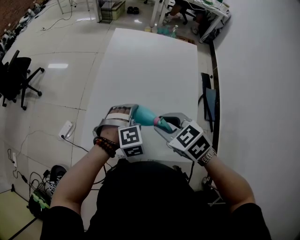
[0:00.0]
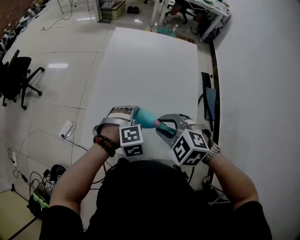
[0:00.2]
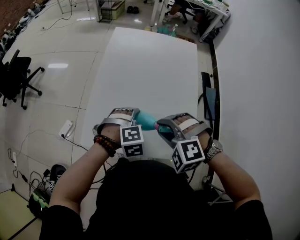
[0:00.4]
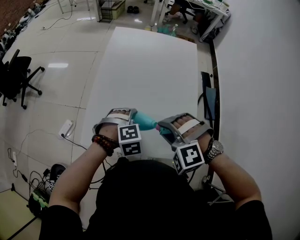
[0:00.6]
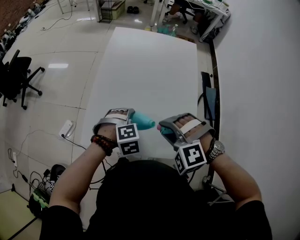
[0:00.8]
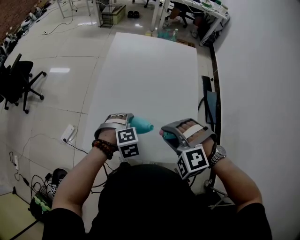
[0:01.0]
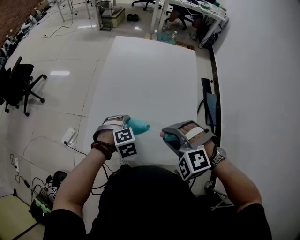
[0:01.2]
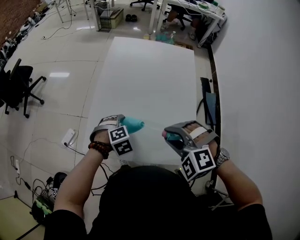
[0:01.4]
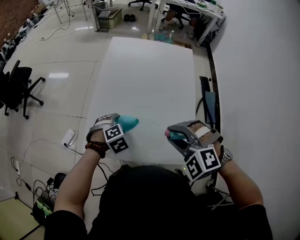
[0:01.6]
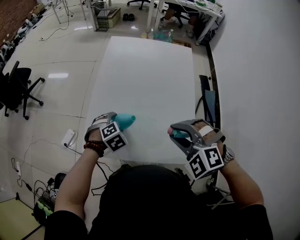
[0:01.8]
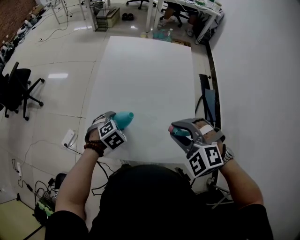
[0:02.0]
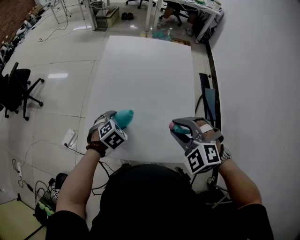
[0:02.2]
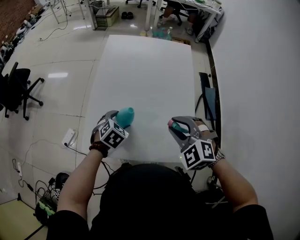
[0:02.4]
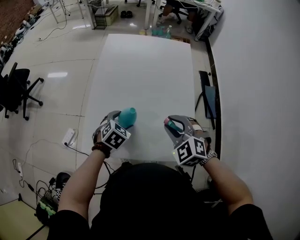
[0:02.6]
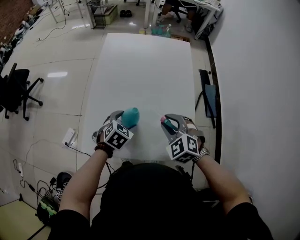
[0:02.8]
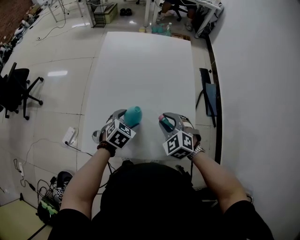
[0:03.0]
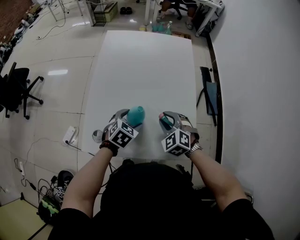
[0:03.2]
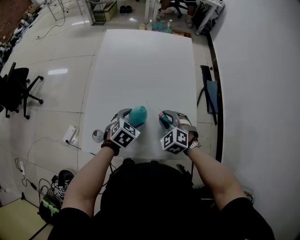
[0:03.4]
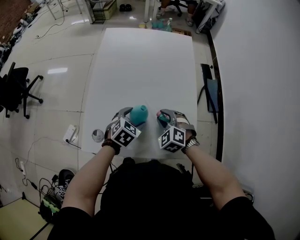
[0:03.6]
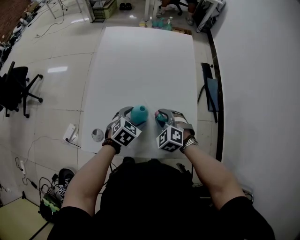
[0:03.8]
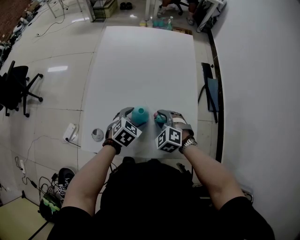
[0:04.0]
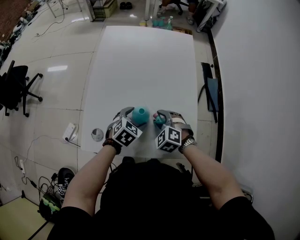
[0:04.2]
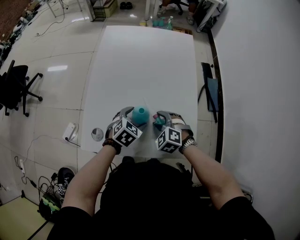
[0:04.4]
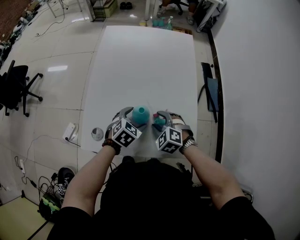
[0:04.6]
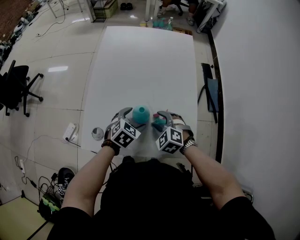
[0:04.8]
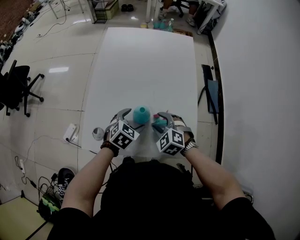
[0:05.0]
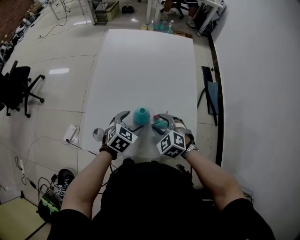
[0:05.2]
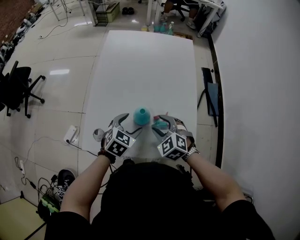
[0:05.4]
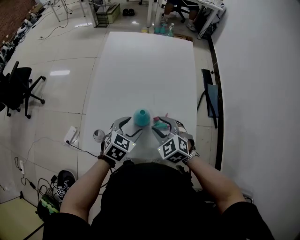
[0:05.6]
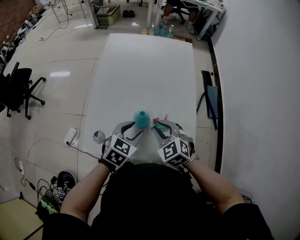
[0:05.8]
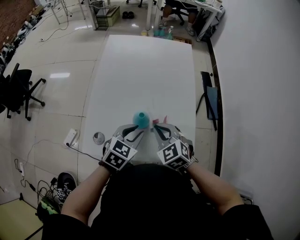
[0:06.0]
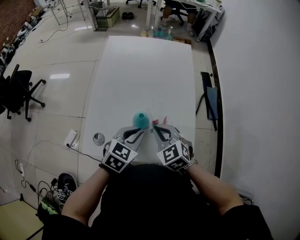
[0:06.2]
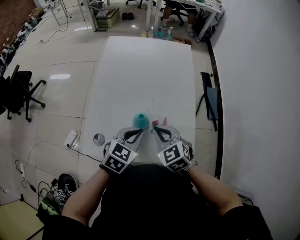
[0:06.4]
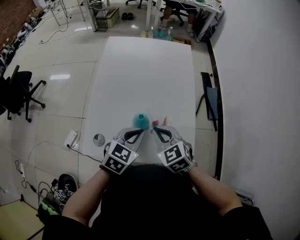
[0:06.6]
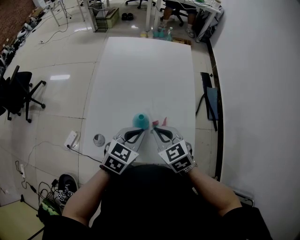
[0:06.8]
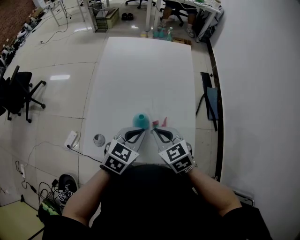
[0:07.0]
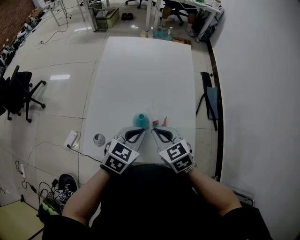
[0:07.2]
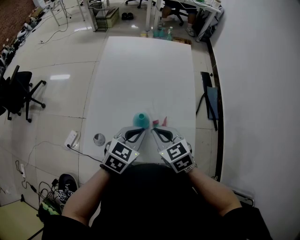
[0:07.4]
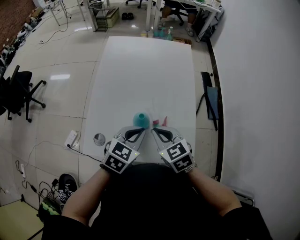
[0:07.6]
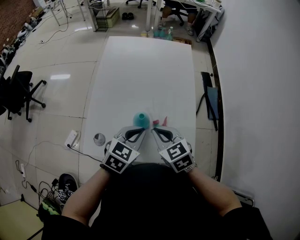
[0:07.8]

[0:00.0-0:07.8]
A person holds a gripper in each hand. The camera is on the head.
0.0 to 1.6 s: The left gripper travels to the left and downward by roughly 10 cm. The right gripper moves approximately 5 cm, and rotates around the line of its fingers by roughly 50 degrees, counterclockwise from behind.
1.6 to 3.2 s: The left gripper heads to the right, covering roughly 5 cm, and swivels some 30 degrees, while the right gripper travels downward and forward by roughly 15 cm, and swivels approximately 30 degrees.
3.2 to 4.6 s: The right gripper moves downward, roughly 5 cm, and opens.
4.6 to 6.2 s: Both grippers move upward, roughly 10 cm. The right gripper rotates about 20 degrees, and closes up, while the left gripper closes its fingers.
6.2 to 7.8 s: The grippers make only small movements.

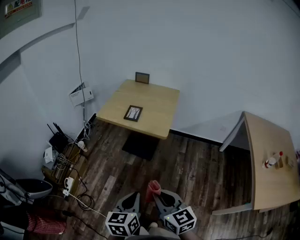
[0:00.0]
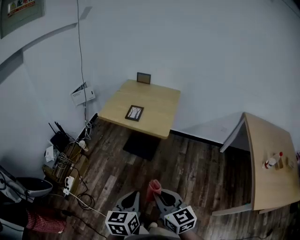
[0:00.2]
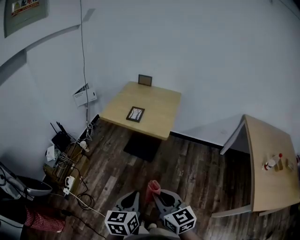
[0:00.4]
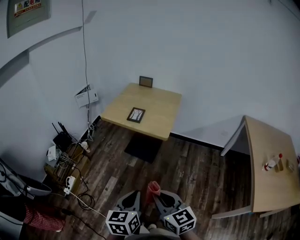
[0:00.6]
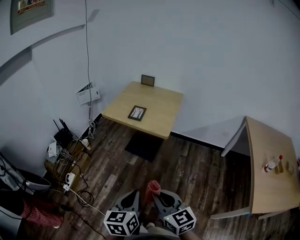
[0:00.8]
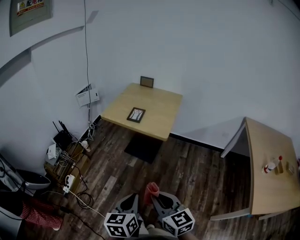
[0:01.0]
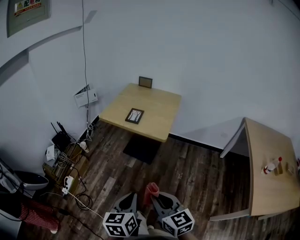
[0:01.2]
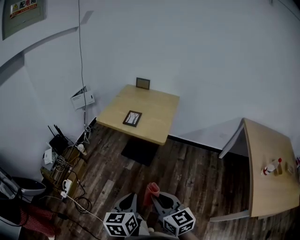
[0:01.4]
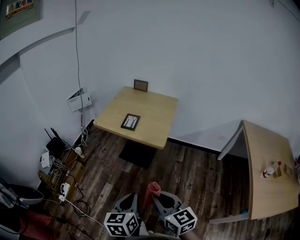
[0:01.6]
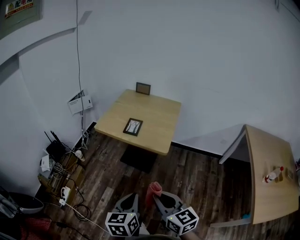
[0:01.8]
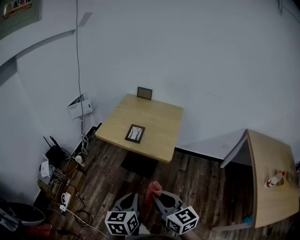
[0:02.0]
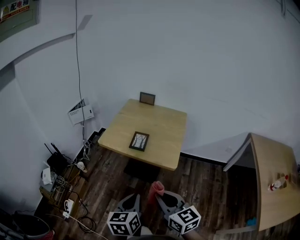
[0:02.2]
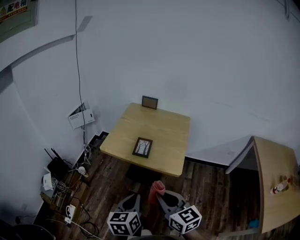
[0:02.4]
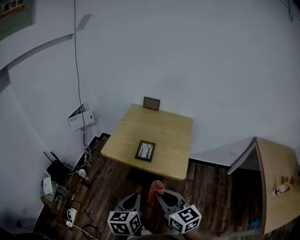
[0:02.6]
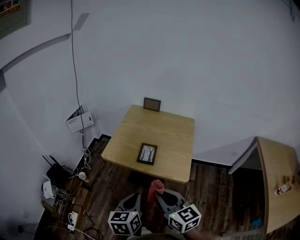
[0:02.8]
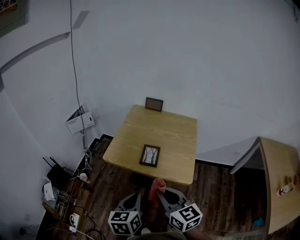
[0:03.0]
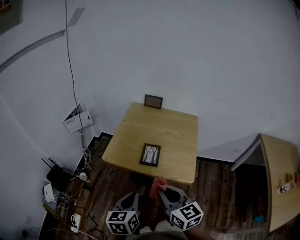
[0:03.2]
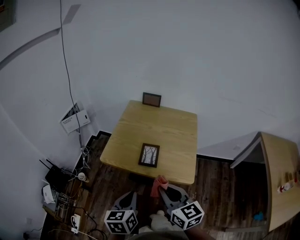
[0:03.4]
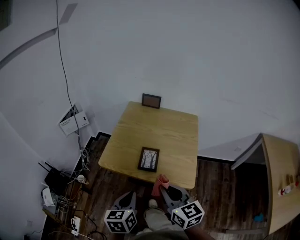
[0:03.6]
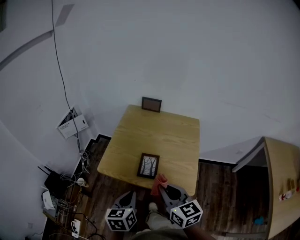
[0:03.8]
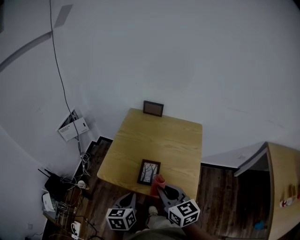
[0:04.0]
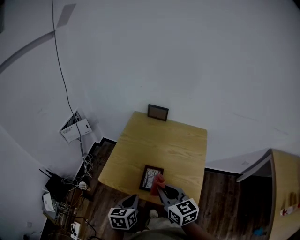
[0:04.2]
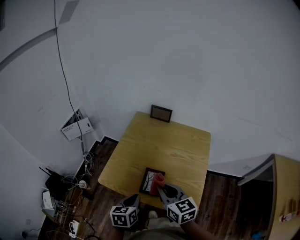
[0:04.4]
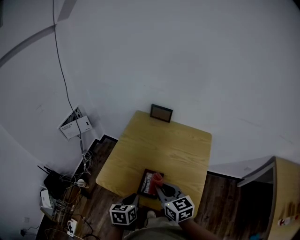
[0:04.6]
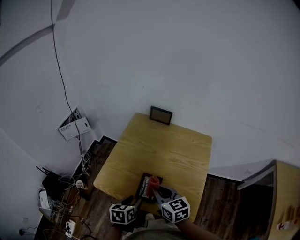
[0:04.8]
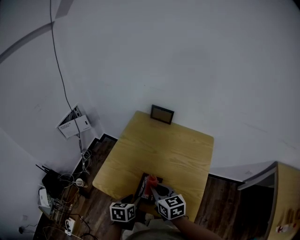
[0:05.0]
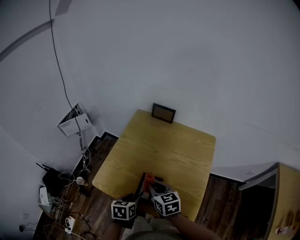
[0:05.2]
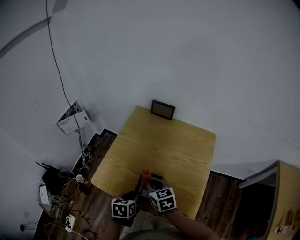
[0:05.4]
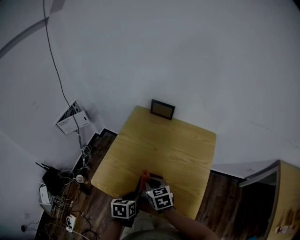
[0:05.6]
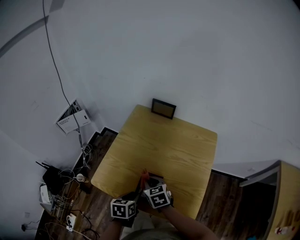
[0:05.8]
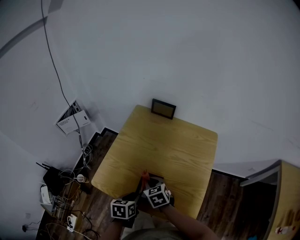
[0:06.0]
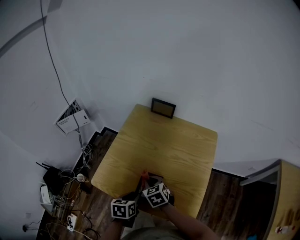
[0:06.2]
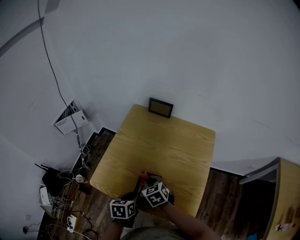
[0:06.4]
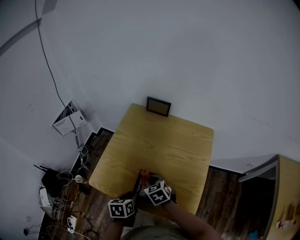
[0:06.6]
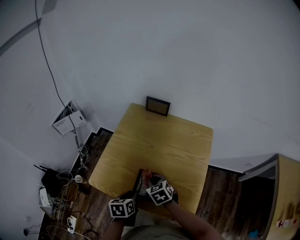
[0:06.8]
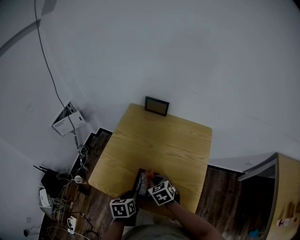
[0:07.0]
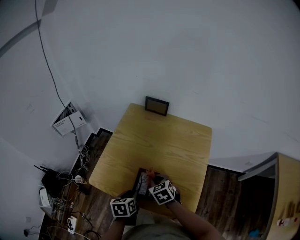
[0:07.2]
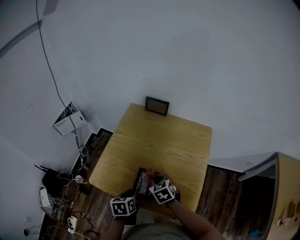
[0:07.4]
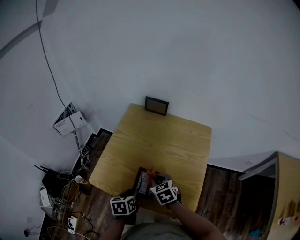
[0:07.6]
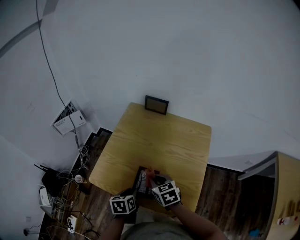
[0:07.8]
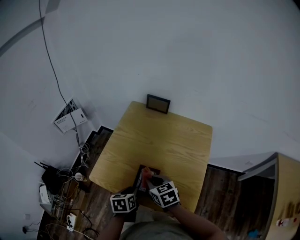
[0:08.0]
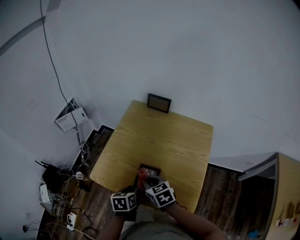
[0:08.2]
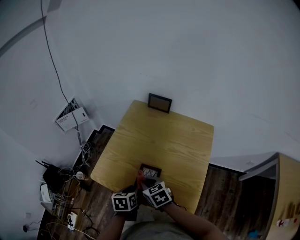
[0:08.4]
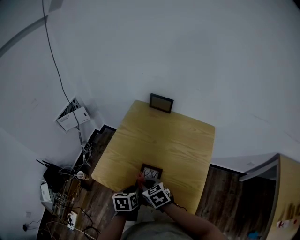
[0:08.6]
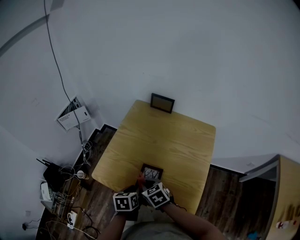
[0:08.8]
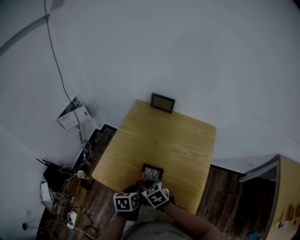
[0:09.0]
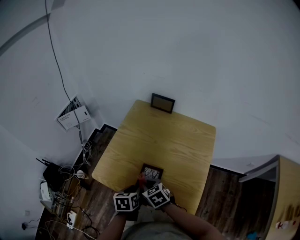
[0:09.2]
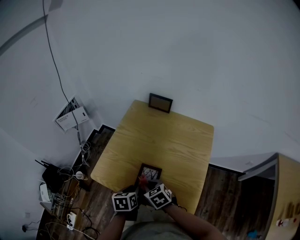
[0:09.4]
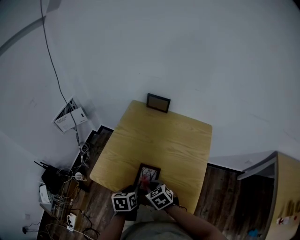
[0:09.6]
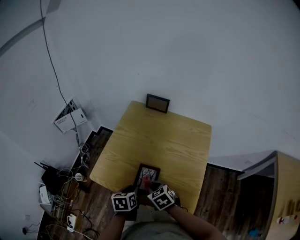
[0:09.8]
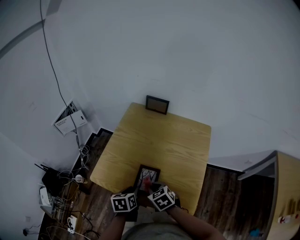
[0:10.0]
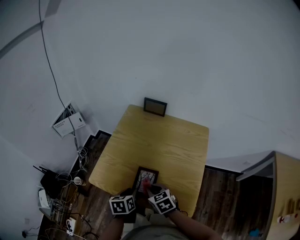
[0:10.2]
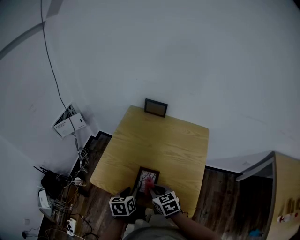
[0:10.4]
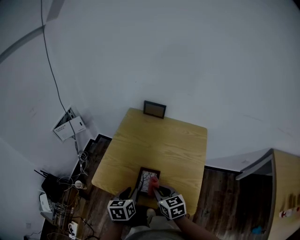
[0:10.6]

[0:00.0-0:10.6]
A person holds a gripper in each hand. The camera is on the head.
0.0 to 1.6 s: The grippers move only a little.
1.6 to 3.0 s: Both grippers move forward, about 30 cm.
3.0 to 4.6 s: The left gripper goes some 25 cm forward and downward; the right gripper shifts some 25 cm forward.
4.6 to 6.0 s: The right gripper is displaced downward and forward by some 15 cm, and changes its angle by approximately 30 degrees. Meanwhile the left gripper goes approximately 5 cm downward, and opens.
6.0 to 7.6 s: The right gripper shifts by approximately 5 cm.
7.6 to 9.0 s: The right gripper moves to the left, roughly 5 cm.
9.0 to 10.6 s: The right gripper shifts roughly 10 cm upward and to the right, and changes its angle by roughly 30 degrees; the left gripper moves upward, about 5 cm.

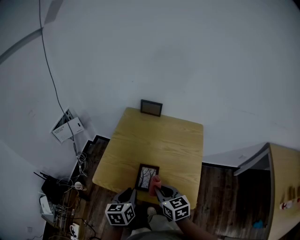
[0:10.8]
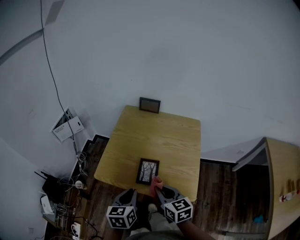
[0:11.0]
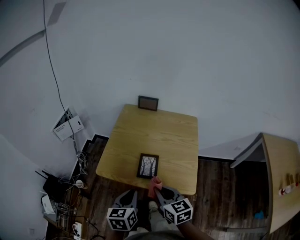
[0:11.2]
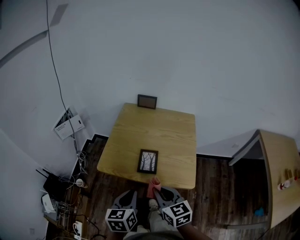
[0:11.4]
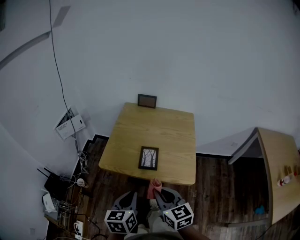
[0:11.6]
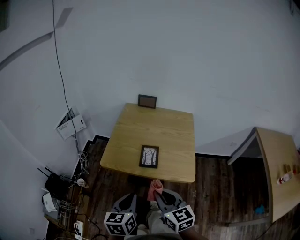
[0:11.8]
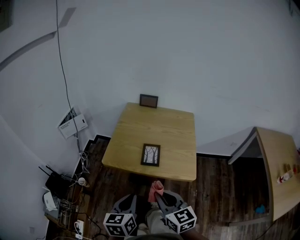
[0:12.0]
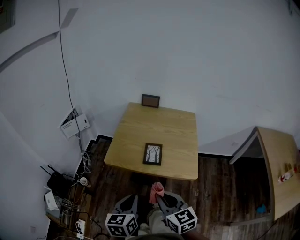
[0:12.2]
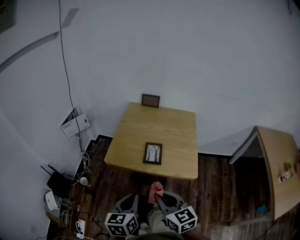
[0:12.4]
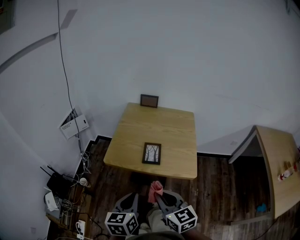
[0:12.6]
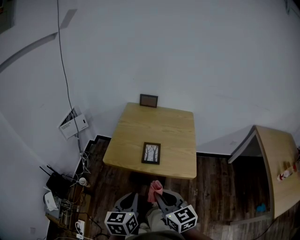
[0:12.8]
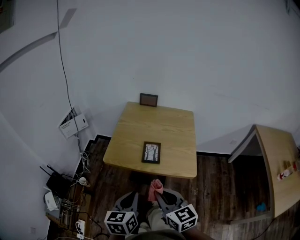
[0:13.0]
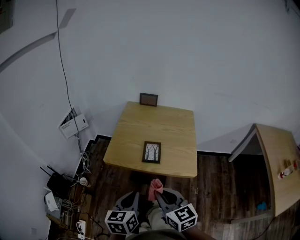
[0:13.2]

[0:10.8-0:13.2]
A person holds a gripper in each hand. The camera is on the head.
10.8 to 12.0 s: The right gripper moves backward and upward, about 25 cm, while the left gripper shifts roughly 20 cm backward.
12.0 to 13.2 s: There are only small adjustments of the grippers.

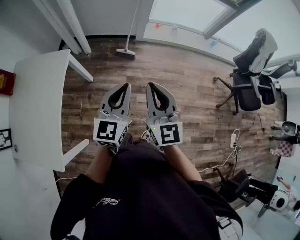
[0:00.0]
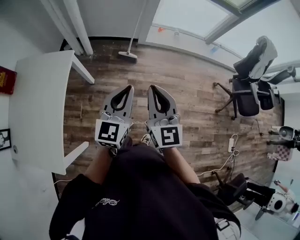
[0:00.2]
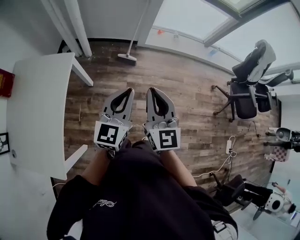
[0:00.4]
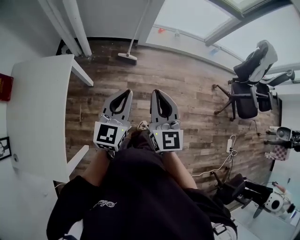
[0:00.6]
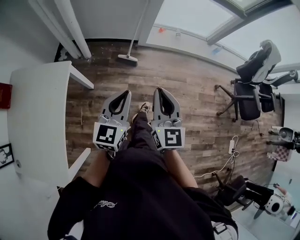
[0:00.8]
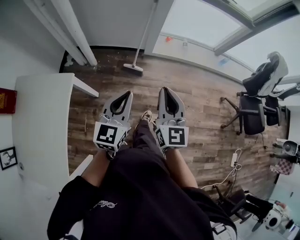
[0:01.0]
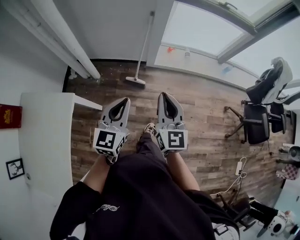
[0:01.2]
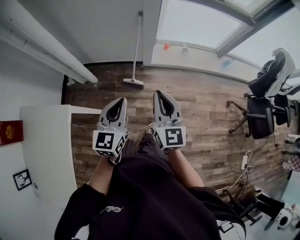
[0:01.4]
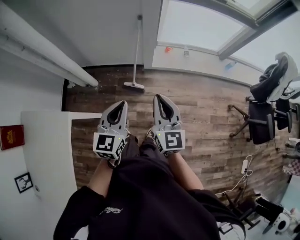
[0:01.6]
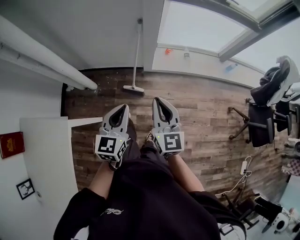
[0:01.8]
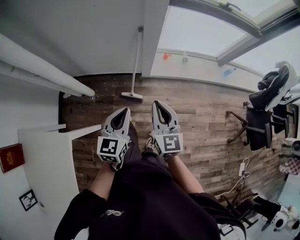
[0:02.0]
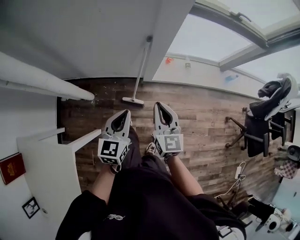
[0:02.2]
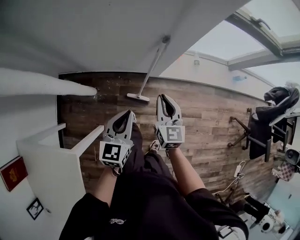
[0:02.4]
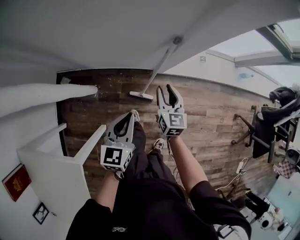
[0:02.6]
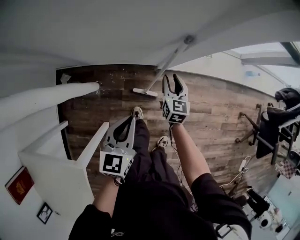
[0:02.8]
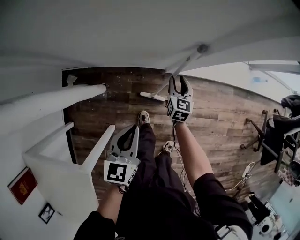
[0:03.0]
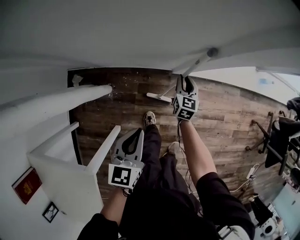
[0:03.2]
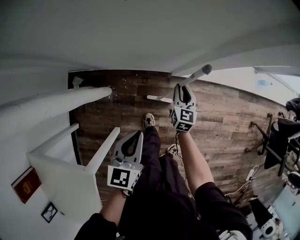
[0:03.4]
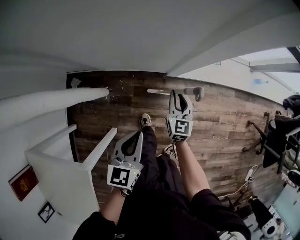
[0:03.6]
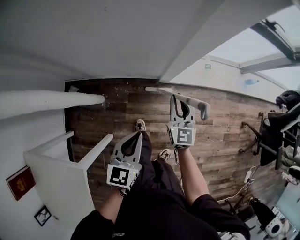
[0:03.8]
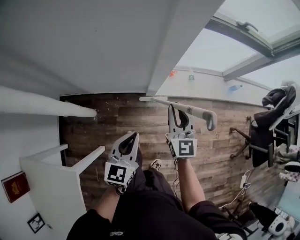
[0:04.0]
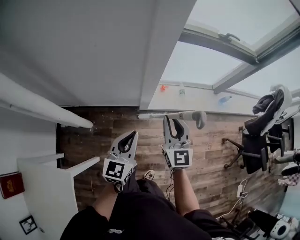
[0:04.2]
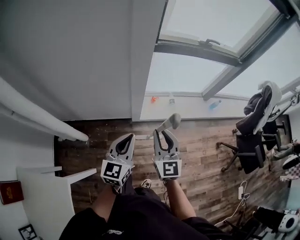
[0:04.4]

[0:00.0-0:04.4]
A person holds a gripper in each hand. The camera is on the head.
0.0 to 1.4 s: Both grippers move forward, roughly 30 cm.
1.4 to 3.0 s: The left gripper goes approximately 40 cm forward, downward and to the left. Meanwhile the right gripper travels forward and downward by approximately 60 cm, turns by some 30 degrees, and opens.
3.0 to 4.4 s: The right gripper travels upward, backward and to the right by roughly 50 cm, and rotates about 30 degrees. The left gripper moves to the right and upward, about 25 cm, and rotates approximately 20 degrees.
